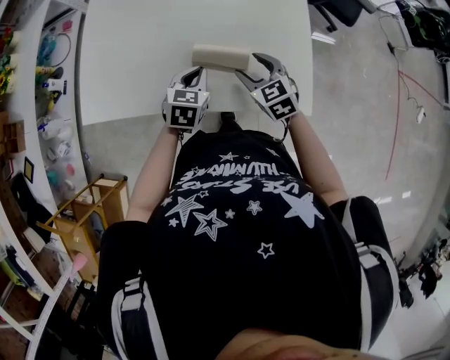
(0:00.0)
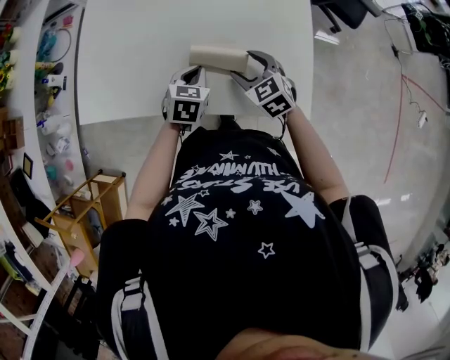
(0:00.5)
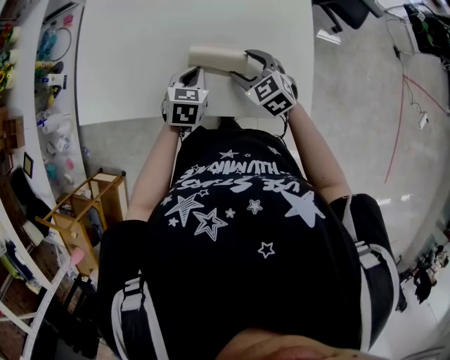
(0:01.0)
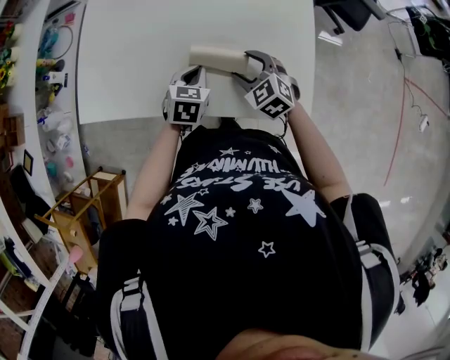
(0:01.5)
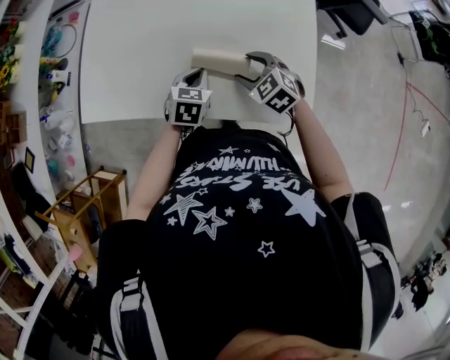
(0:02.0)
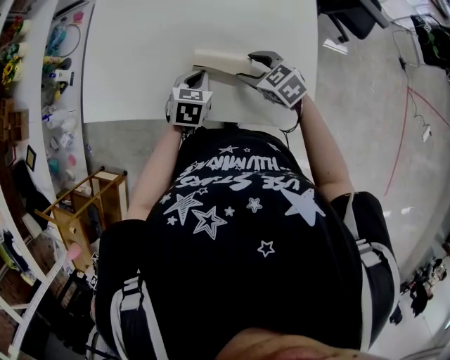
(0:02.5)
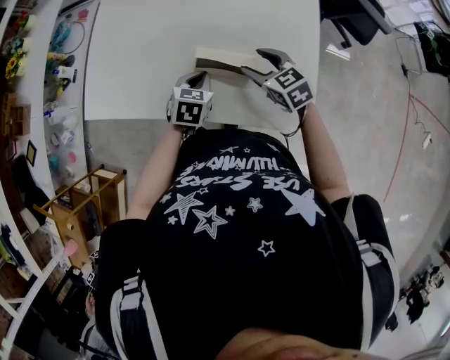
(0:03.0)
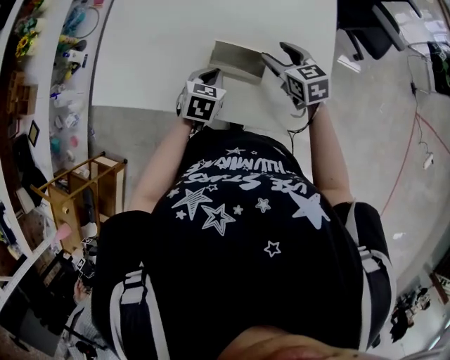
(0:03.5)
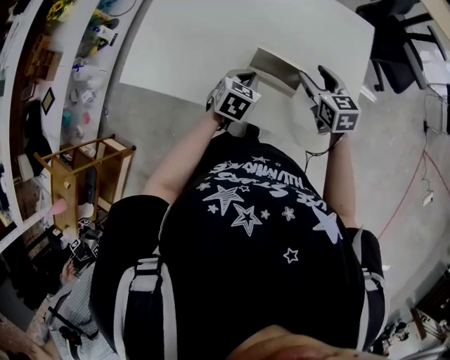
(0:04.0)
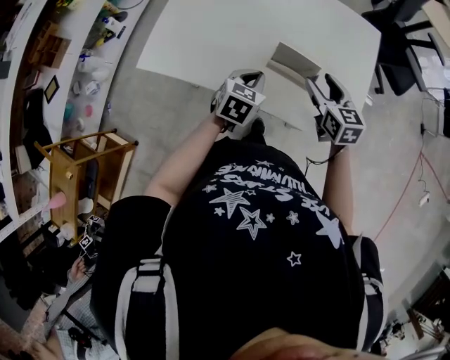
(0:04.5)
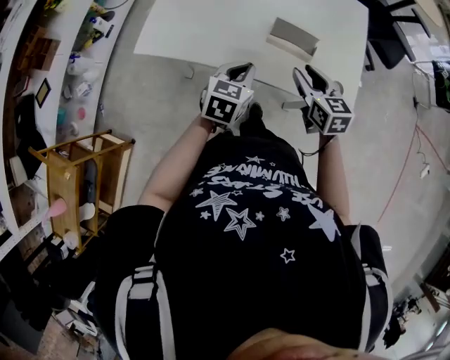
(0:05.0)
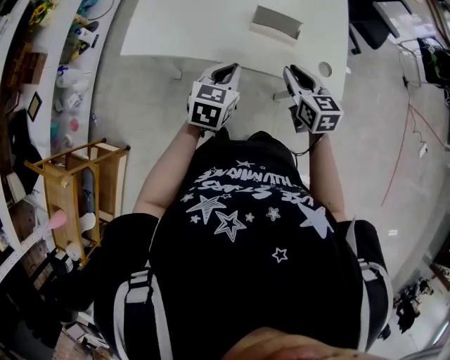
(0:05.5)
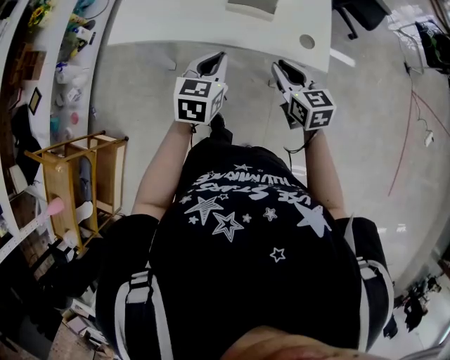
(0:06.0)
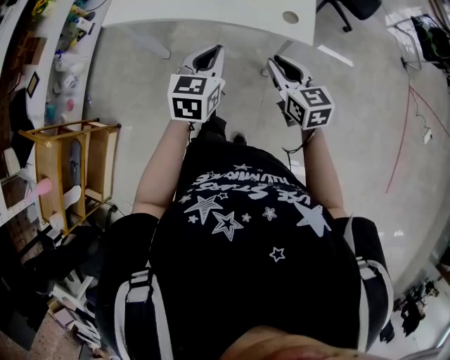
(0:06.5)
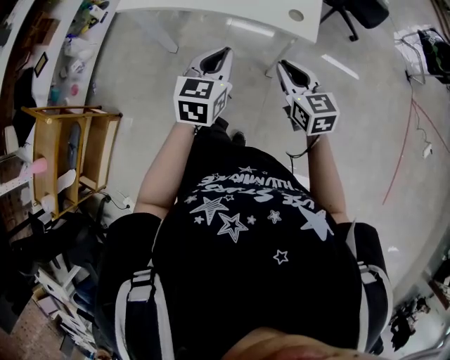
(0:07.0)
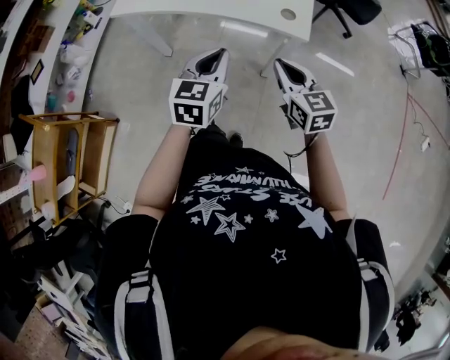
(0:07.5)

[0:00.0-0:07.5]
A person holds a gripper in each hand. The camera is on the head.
0:00.0 to 0:02.0: The right gripper rotates approximately 20 degrees.
0:02.0 to 0:04.0: The right gripper shifts approximately 5 cm to the right, and swivels roughly 30 degrees.
0:04.0 to 0:05.5: The right gripper moves backward and to the left, some 20 cm, and closes, while the left gripper heads backward, upward and to the left, covering roughly 20 cm.
0:05.5 to 0:07.5: The left gripper is displaced backward and to the right by roughly 25 cm, while the right gripper shifts some 25 cm backward.

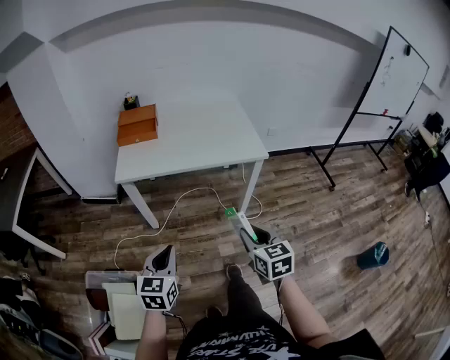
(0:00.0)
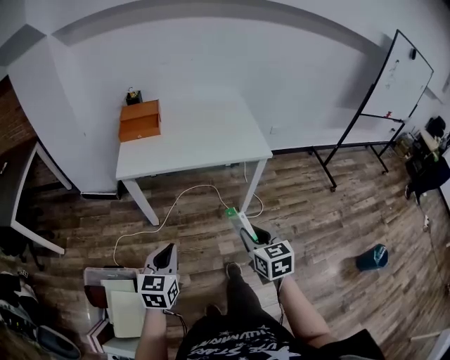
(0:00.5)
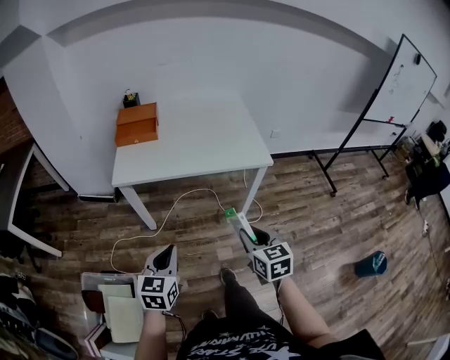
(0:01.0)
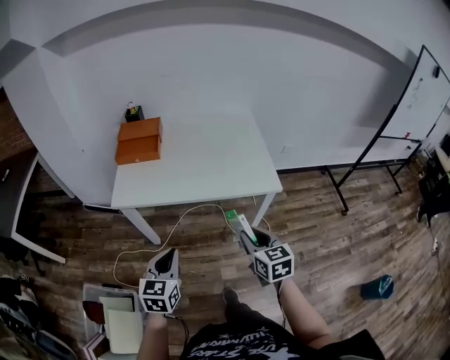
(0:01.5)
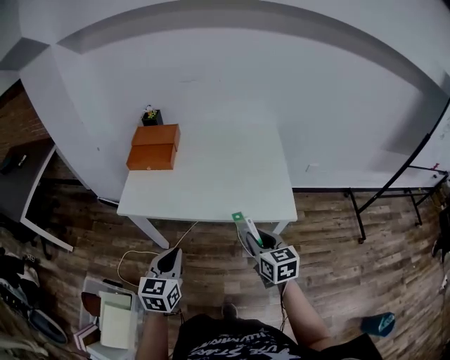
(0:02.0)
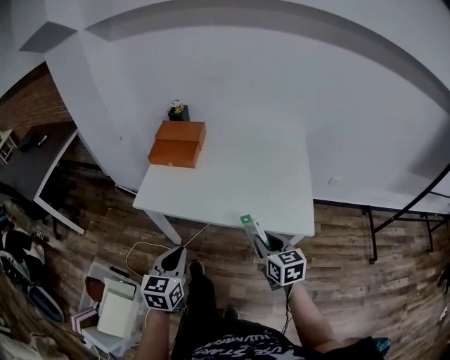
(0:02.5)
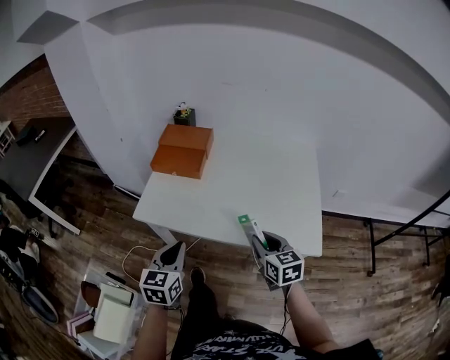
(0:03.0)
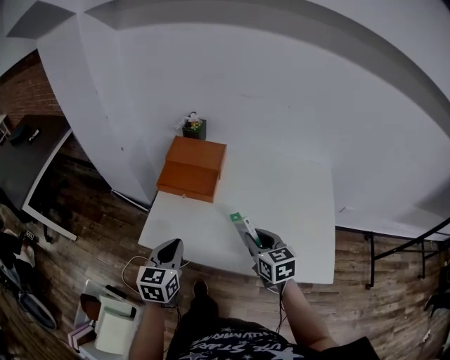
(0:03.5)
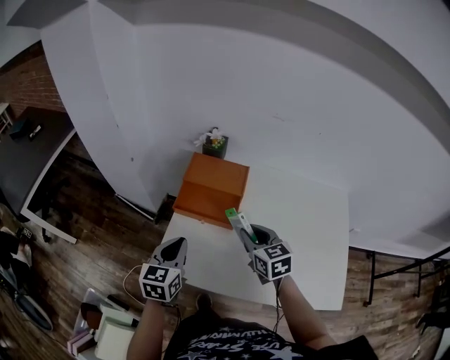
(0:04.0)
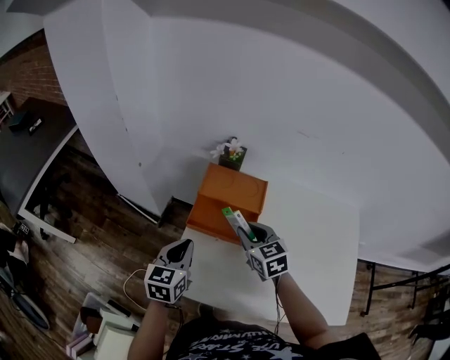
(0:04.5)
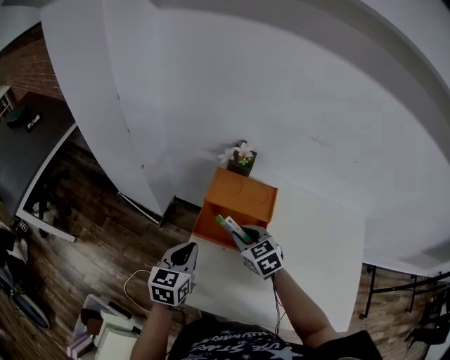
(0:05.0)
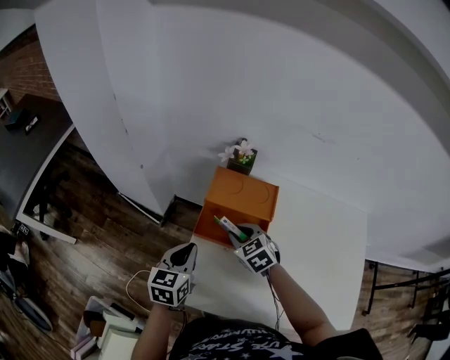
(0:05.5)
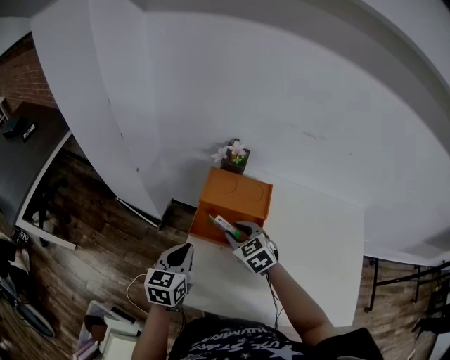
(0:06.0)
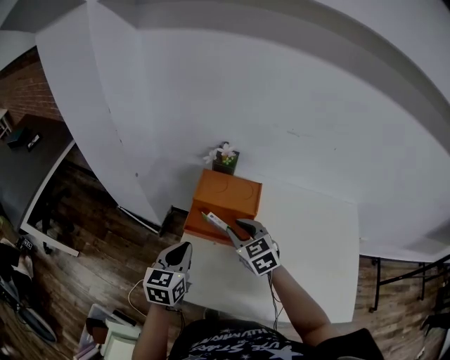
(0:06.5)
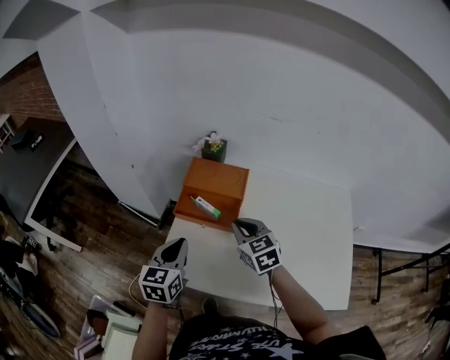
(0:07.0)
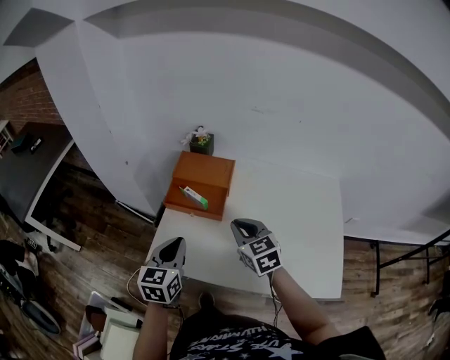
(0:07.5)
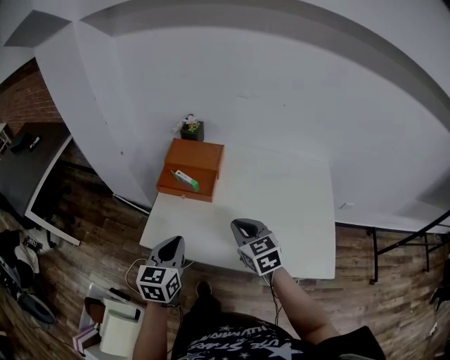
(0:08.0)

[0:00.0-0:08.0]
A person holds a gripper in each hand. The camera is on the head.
0:00.0 to 0:02.0: The grippers both shift forward by roughly 30 cm.
0:02.0 to 0:04.0: Both grippers are carried forward and to the left, approximately 50 cm.
0:04.0 to 0:06.0: The left gripper shifts approximately 10 cm forward and to the left. The right gripper heads forward, to the left and downward, covering about 20 cm, and changes its angle by roughly 30 degrees.
0:06.0 to 0:08.0: Both grippers travel together backward and to the right, approximately 30 cm. The right gripper swivels some 20 degrees.

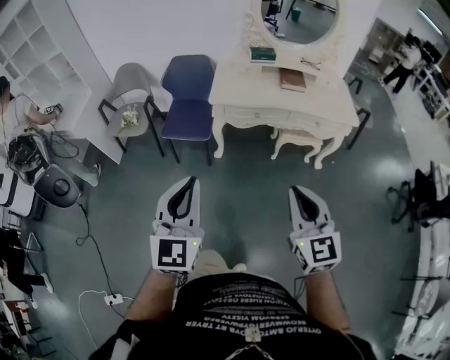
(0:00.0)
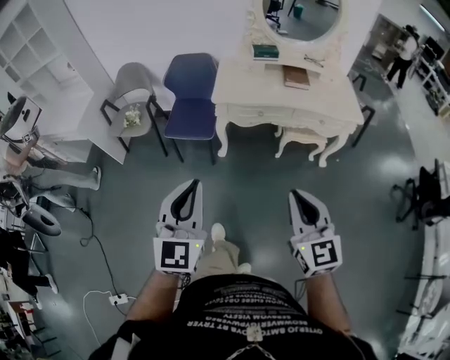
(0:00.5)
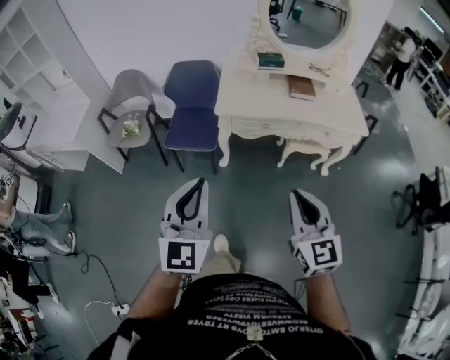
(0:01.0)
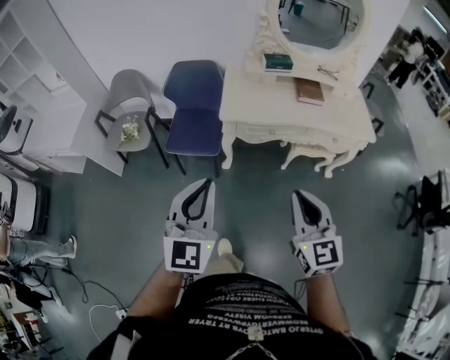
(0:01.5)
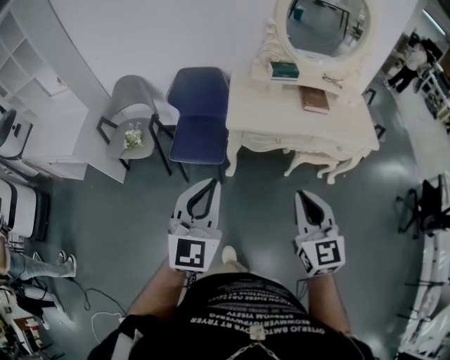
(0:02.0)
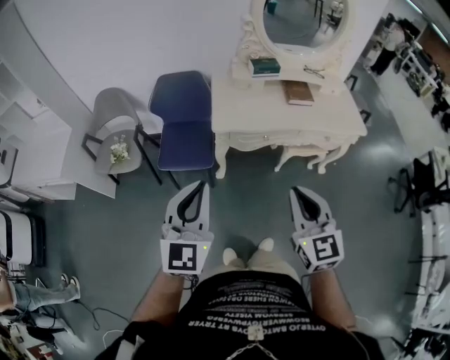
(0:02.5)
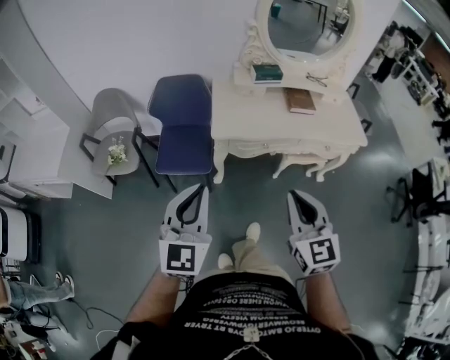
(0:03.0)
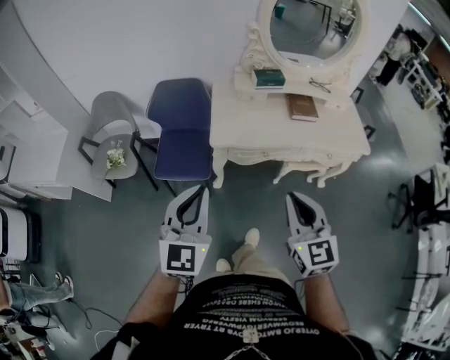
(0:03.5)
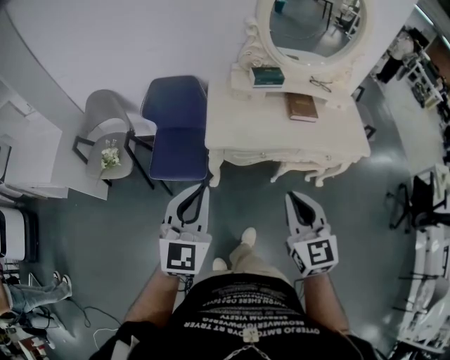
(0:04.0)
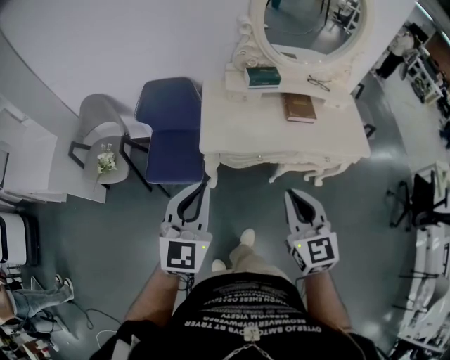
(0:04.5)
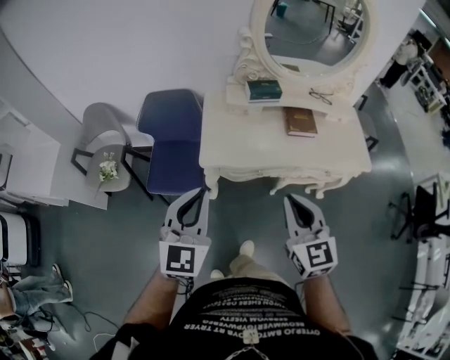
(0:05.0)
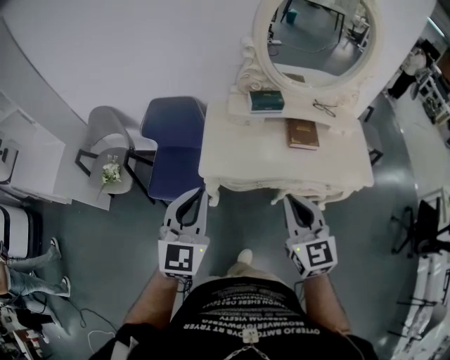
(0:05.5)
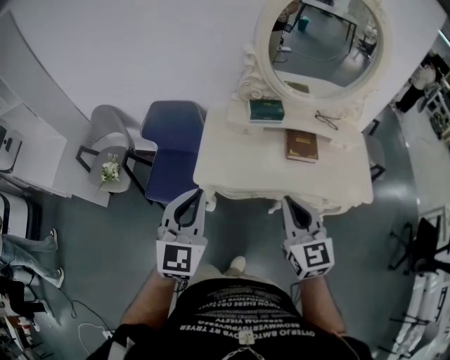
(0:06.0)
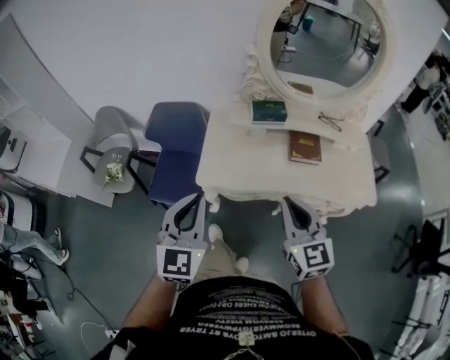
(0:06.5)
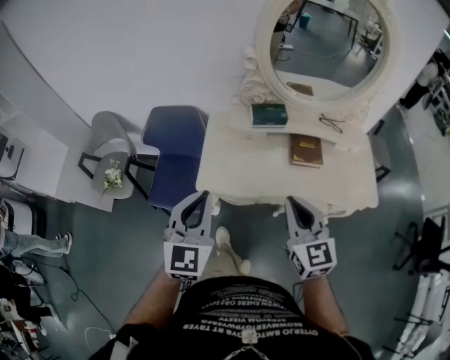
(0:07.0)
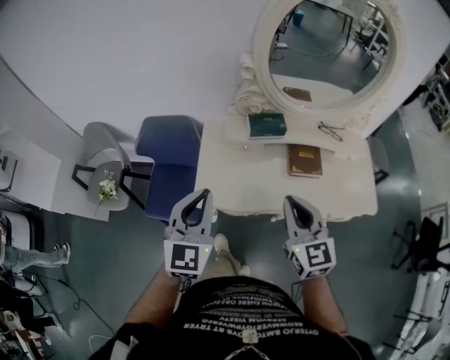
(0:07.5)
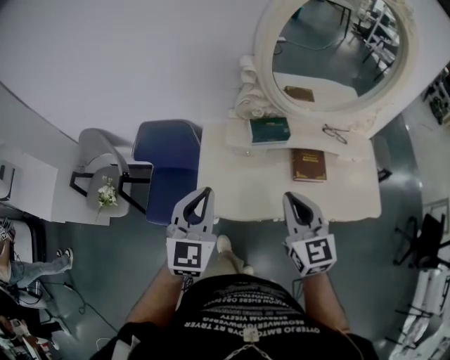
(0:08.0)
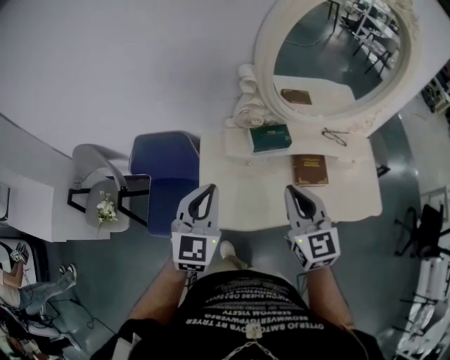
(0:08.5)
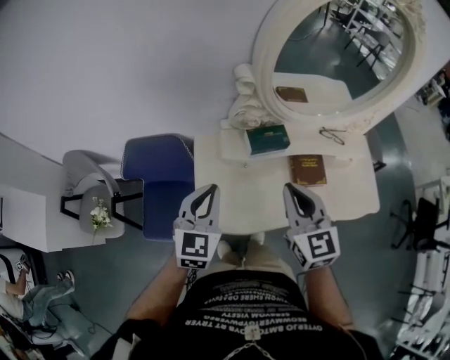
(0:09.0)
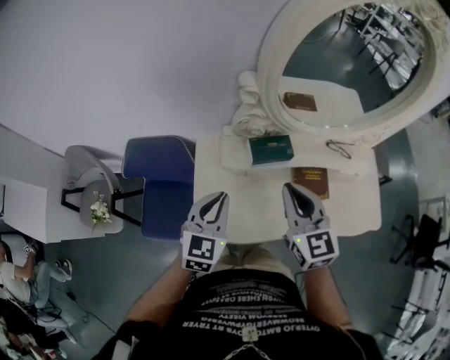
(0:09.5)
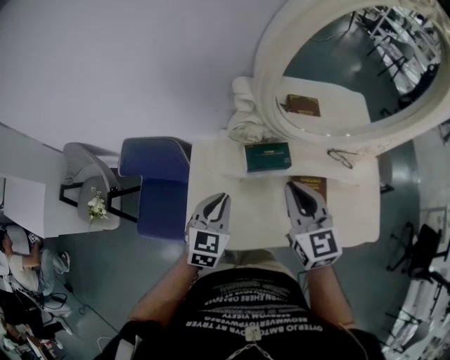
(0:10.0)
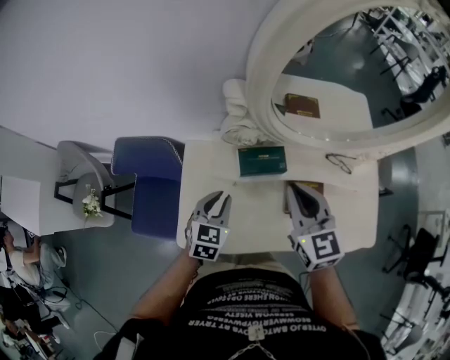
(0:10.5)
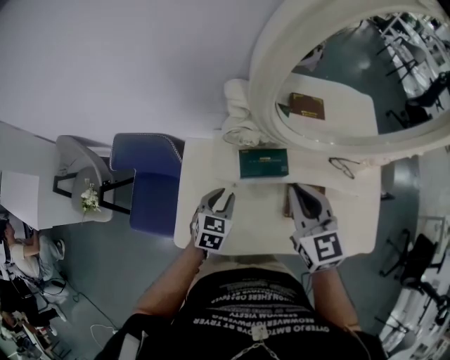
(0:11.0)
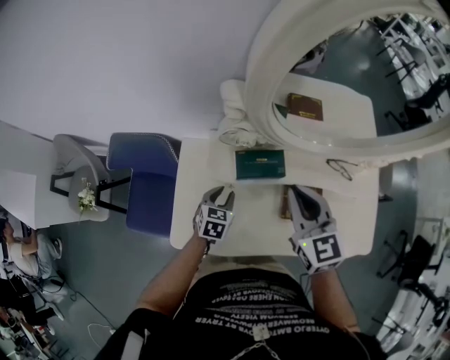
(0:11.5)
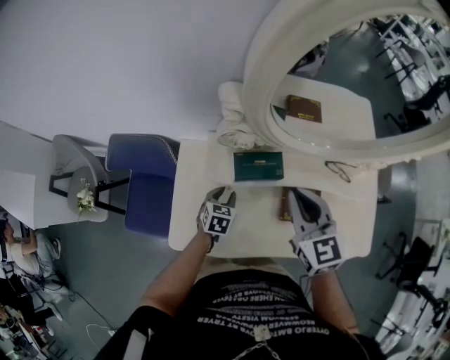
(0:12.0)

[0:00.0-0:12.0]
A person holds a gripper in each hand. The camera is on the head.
0:00.0 to 0:02.0: The left gripper travels forward by about 20 cm; the right gripper heads forward and to the left, covering some 20 cm.
0:02.0 to 0:04.0: The two grippers go approximately 15 cm forward.
0:04.0 to 0:06.0: The grippers both shift forward and to the right by roughly 15 cm.
0:06.0 to 0:08.0: Both grippers move forward, some 15 cm.
0:08.0 to 0:10.0: The right gripper goes about 20 cm forward, while the left gripper moves forward and downward, about 20 cm.
0:10.0 to 0:12.0: The left gripper travels downward by roughly 20 cm, swivels approximately 20 degrees, and opens up. The right gripper moves about 5 cm.
